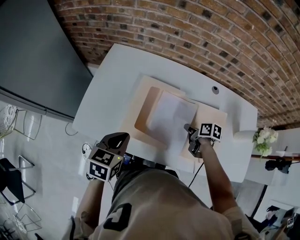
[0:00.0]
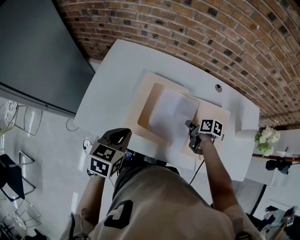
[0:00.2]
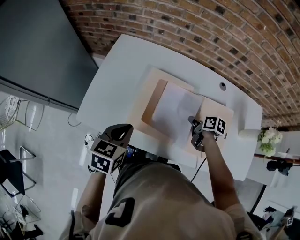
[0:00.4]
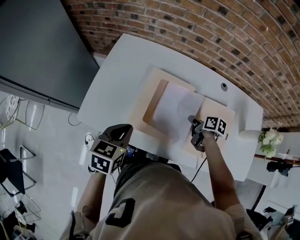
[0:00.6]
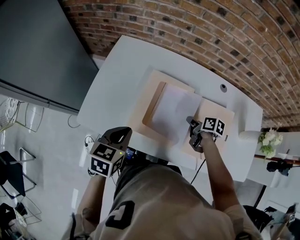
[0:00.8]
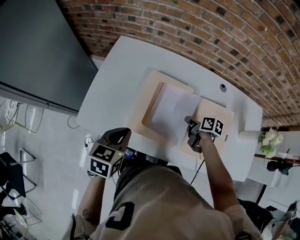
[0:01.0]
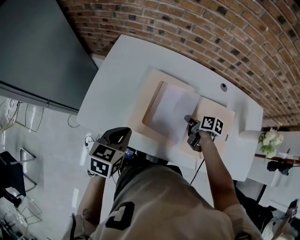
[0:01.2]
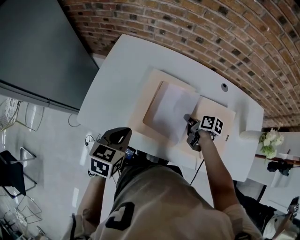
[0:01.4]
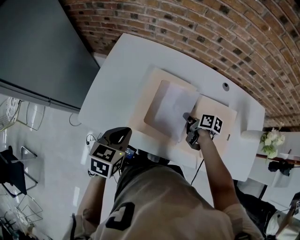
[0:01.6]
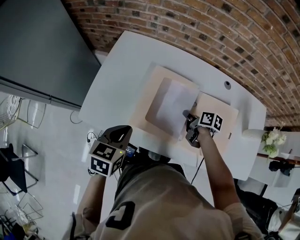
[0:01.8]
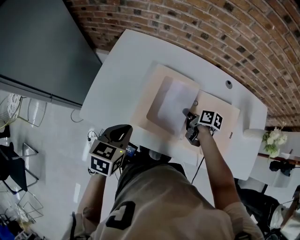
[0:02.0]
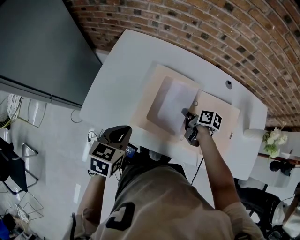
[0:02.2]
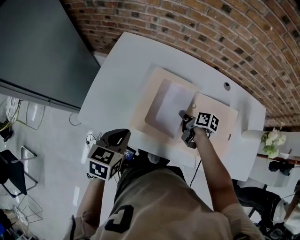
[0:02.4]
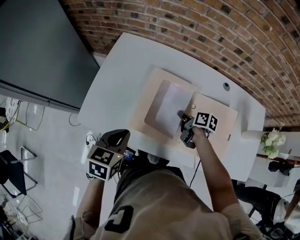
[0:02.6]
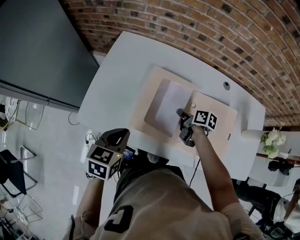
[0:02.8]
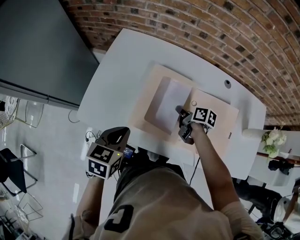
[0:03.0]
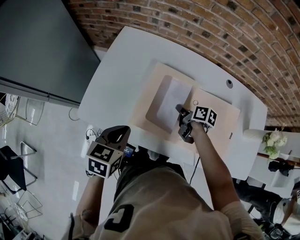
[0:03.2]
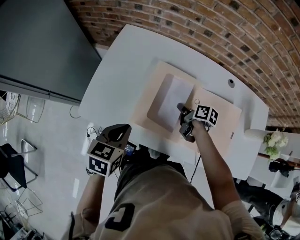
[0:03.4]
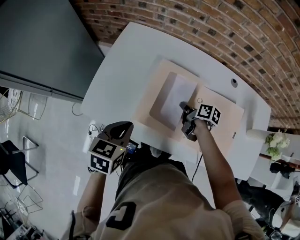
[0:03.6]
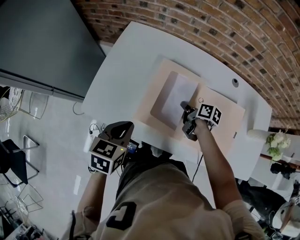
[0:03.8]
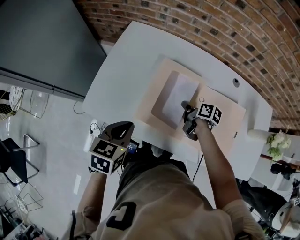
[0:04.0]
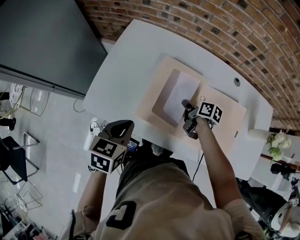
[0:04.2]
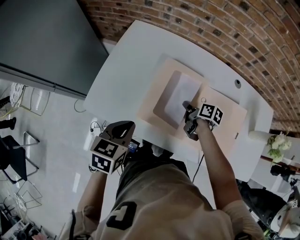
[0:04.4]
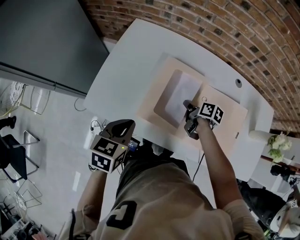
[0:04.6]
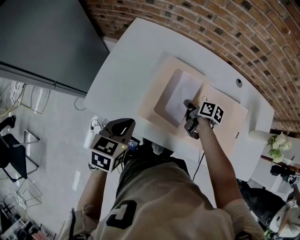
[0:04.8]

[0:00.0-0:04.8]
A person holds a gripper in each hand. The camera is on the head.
0:00.0 to 0:01.6: The right gripper is displaced to the left by roughly 5 cm.
0:01.6 to 0:03.2: The right gripper moves about 5 cm.
0:03.2 to 0:04.8: The two grippers keep their place.

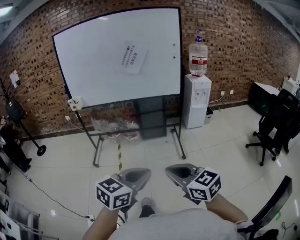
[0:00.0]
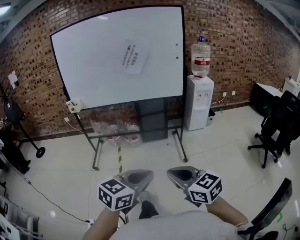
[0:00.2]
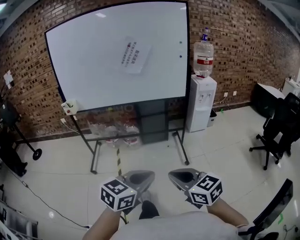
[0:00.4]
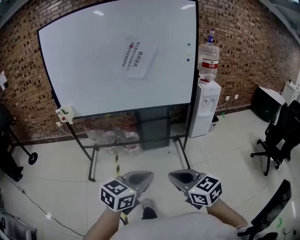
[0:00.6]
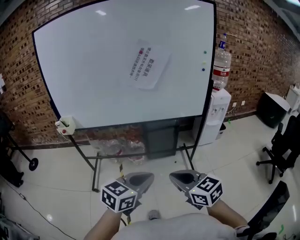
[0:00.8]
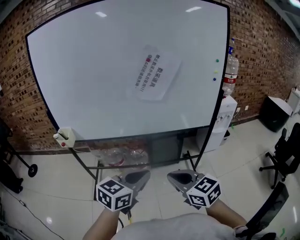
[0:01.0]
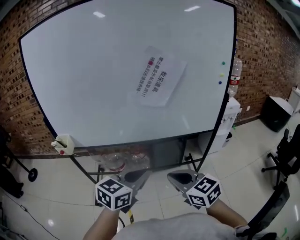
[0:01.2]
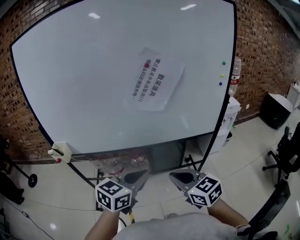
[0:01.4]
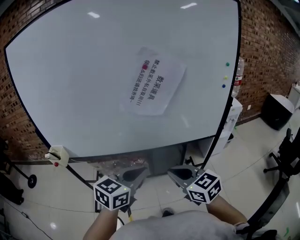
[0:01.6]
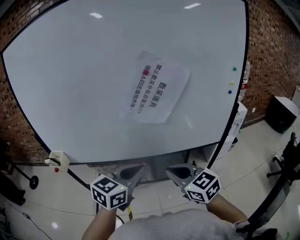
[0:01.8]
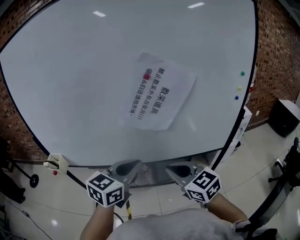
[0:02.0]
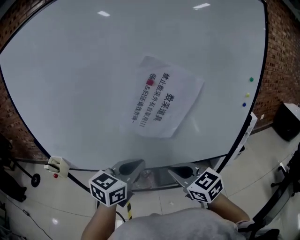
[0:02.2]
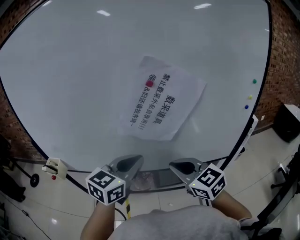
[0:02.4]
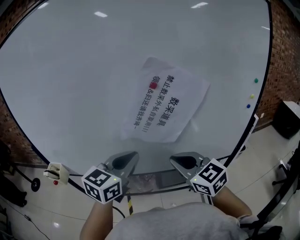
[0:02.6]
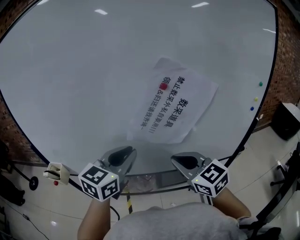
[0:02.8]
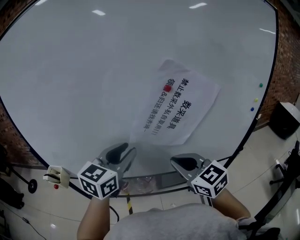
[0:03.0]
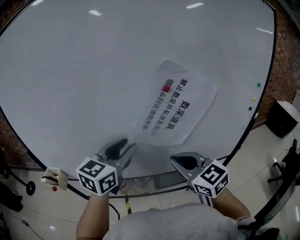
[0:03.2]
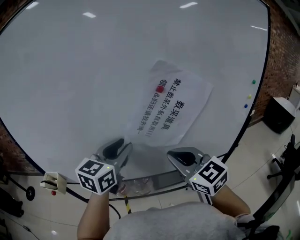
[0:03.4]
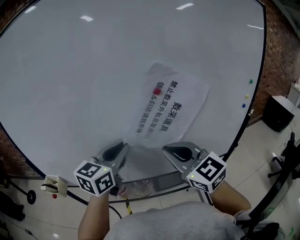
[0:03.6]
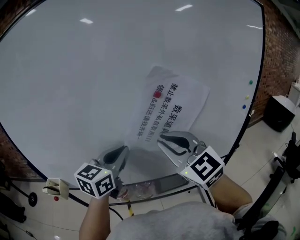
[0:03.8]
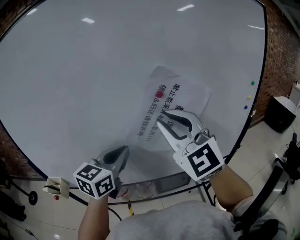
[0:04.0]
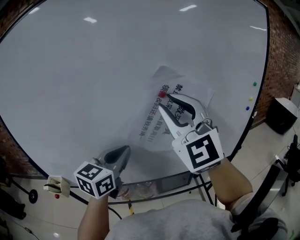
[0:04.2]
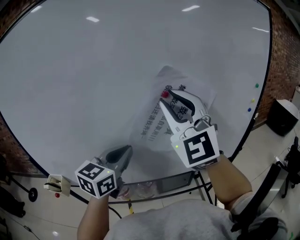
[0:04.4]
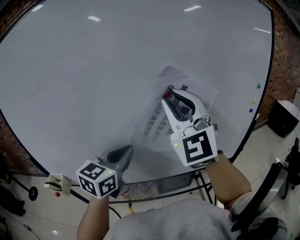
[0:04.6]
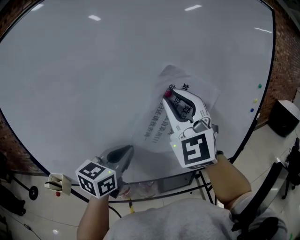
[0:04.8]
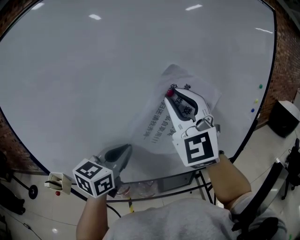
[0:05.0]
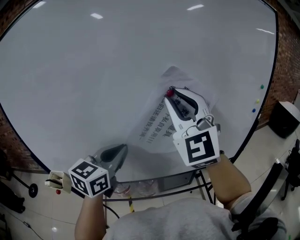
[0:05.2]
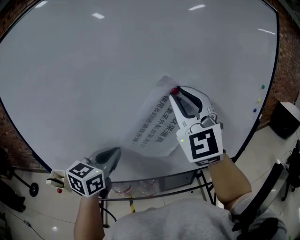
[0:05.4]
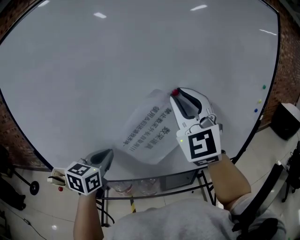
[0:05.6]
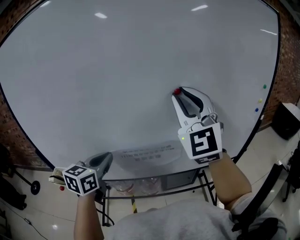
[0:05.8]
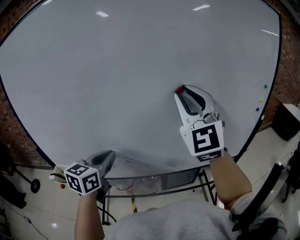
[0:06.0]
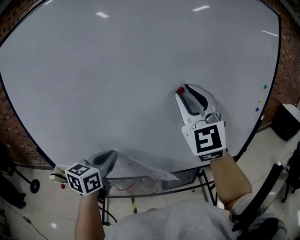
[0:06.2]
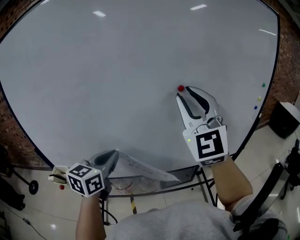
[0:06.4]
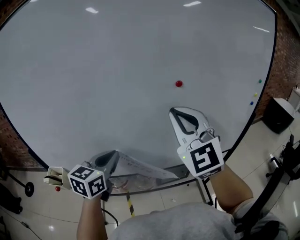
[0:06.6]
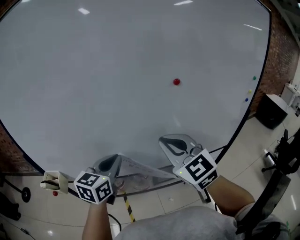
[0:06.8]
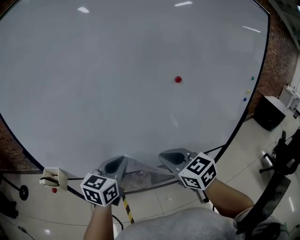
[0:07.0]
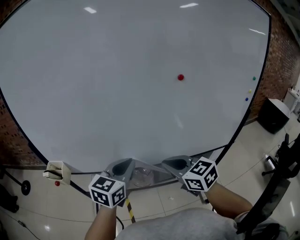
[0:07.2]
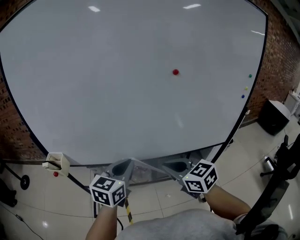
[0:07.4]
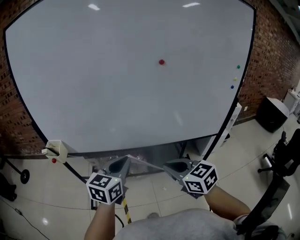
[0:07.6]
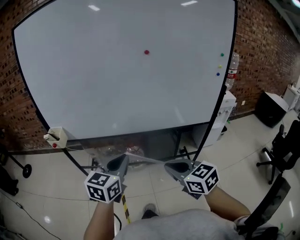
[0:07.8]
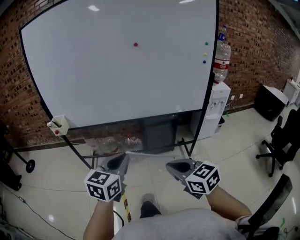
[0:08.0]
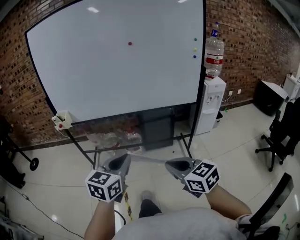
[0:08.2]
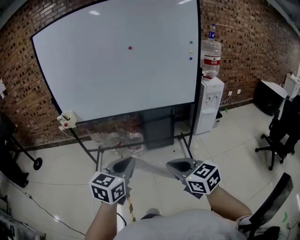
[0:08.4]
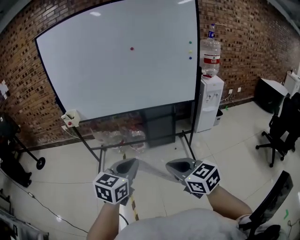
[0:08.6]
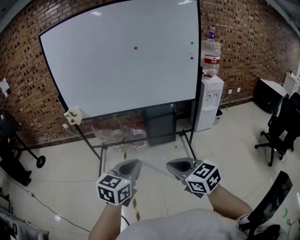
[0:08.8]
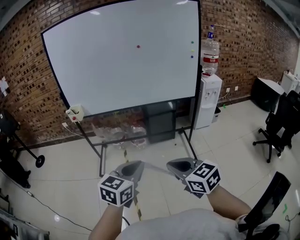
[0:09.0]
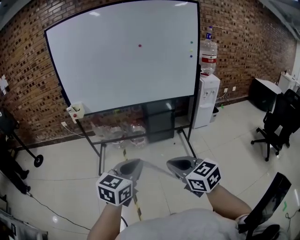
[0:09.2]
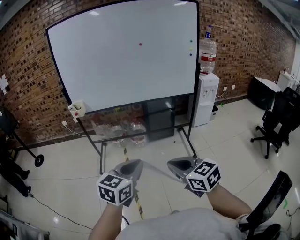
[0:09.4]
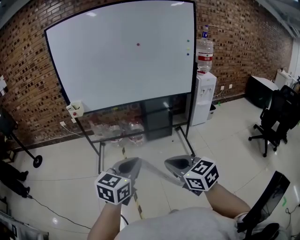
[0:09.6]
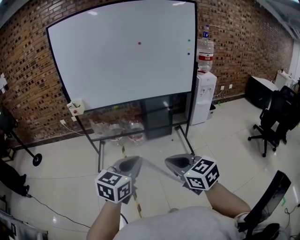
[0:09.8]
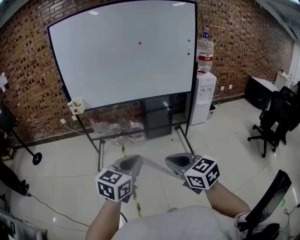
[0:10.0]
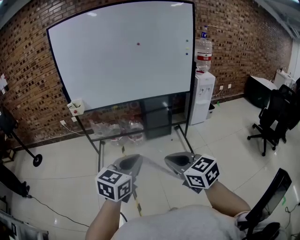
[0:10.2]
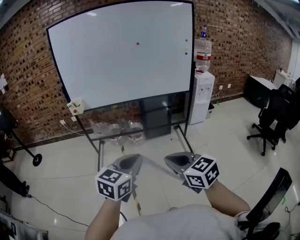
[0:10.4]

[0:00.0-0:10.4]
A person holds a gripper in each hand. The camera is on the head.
0:00.0 to 0:01.4: The pair of grippers is taken forward, approximately 60 cm.
0:01.4 to 0:03.0: Both grippers move forward, about 25 cm. The left gripper opens up.
0:03.0 to 0:04.4: The right gripper moves upward, approximately 25 cm, rotates some 50 degrees, and opens its fingers. The left gripper closes.
0:04.4 to 0:06.0: The left gripper heads to the left, covering some 10 cm.
0:06.0 to 0:07.4: The left gripper is displaced backward, downward and to the right by about 15 cm. Meanwhile the right gripper is displaced downward and backward by about 35 cm, and tips its fingers downward by roughly 40 degrees.
0:07.4 to 0:09.0: The two grippers travel together, backward, approximately 50 cm.
0:09.0 to 0:10.4: Both grippers move backward, some 5 cm.

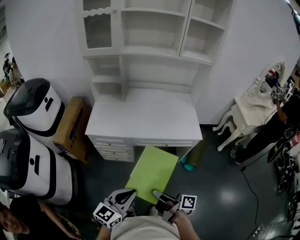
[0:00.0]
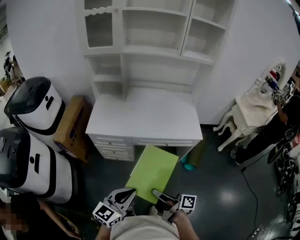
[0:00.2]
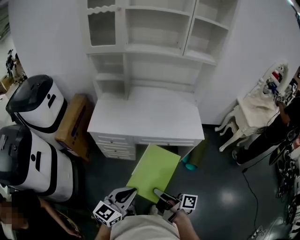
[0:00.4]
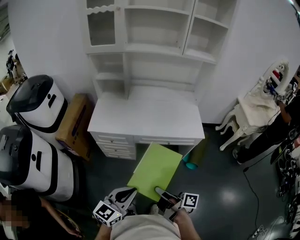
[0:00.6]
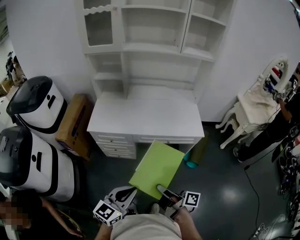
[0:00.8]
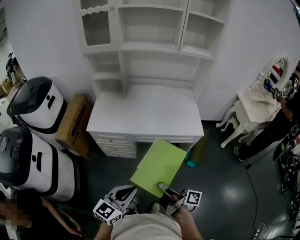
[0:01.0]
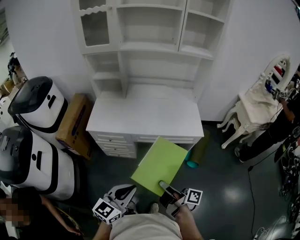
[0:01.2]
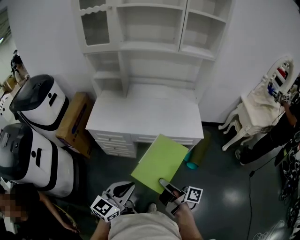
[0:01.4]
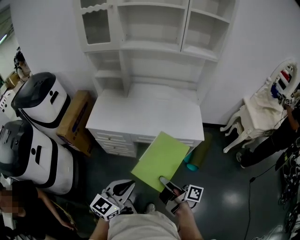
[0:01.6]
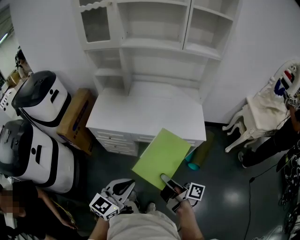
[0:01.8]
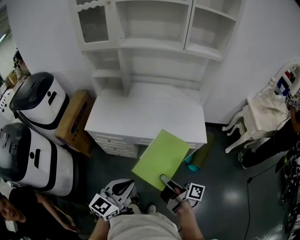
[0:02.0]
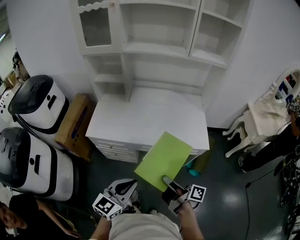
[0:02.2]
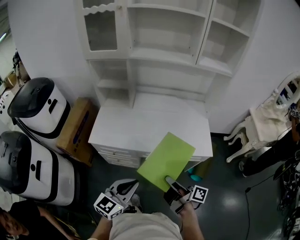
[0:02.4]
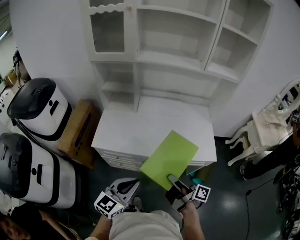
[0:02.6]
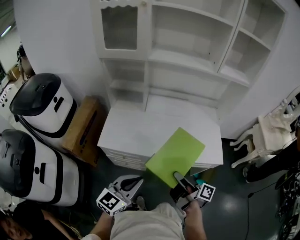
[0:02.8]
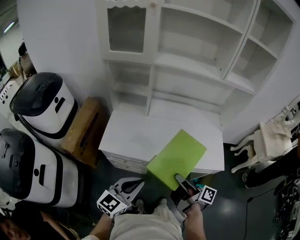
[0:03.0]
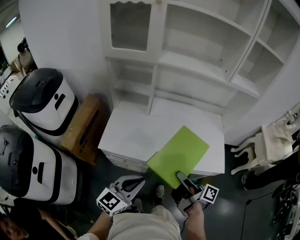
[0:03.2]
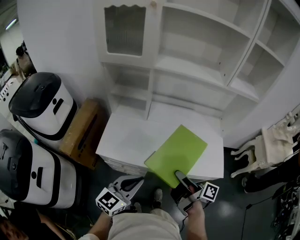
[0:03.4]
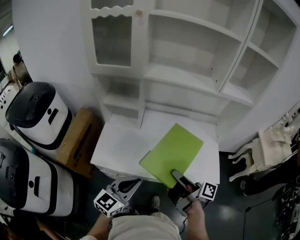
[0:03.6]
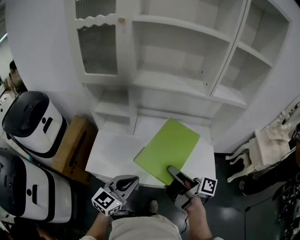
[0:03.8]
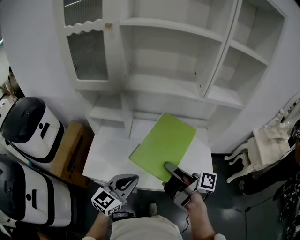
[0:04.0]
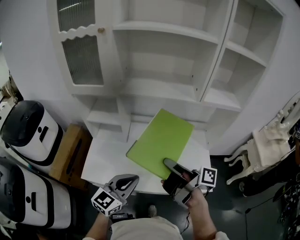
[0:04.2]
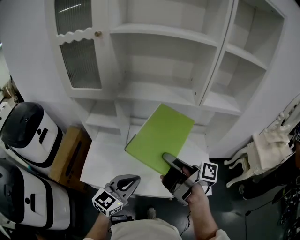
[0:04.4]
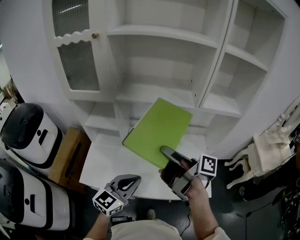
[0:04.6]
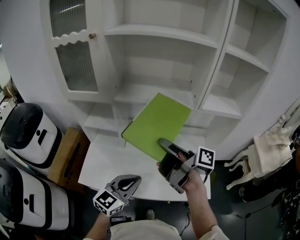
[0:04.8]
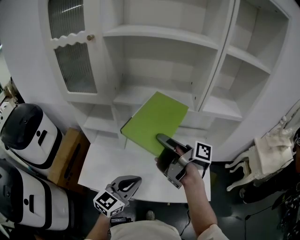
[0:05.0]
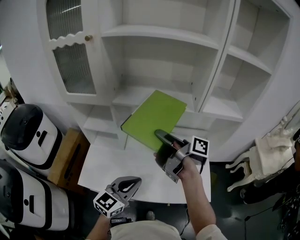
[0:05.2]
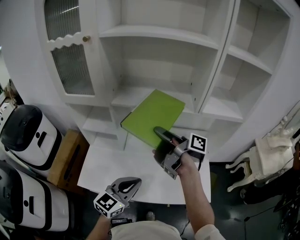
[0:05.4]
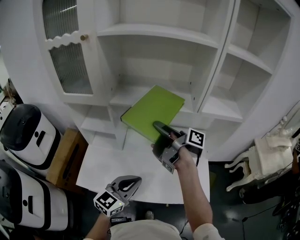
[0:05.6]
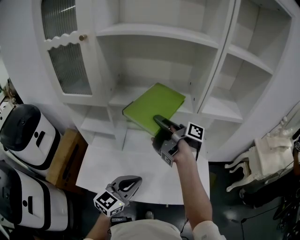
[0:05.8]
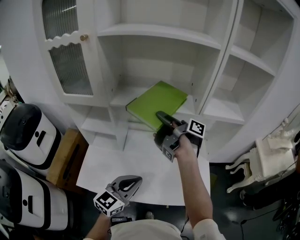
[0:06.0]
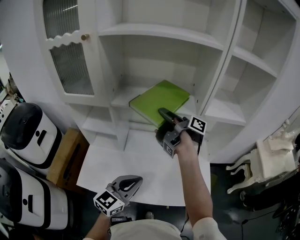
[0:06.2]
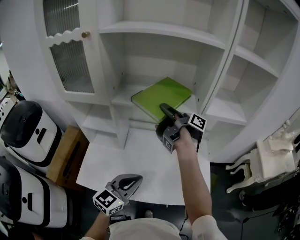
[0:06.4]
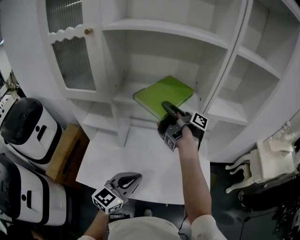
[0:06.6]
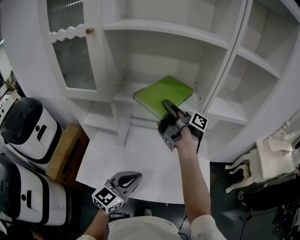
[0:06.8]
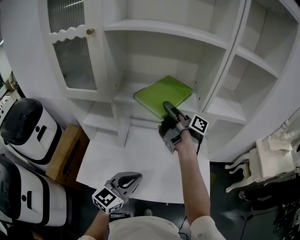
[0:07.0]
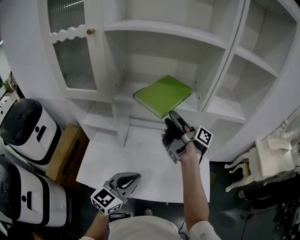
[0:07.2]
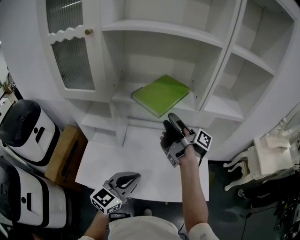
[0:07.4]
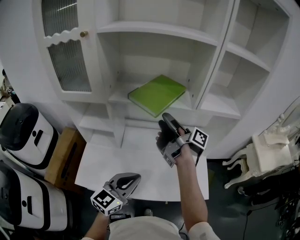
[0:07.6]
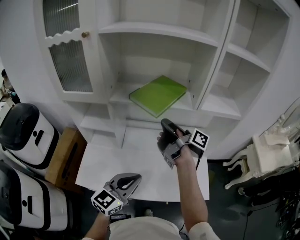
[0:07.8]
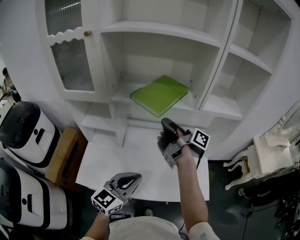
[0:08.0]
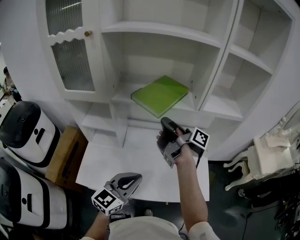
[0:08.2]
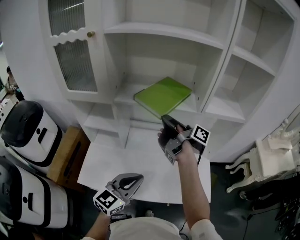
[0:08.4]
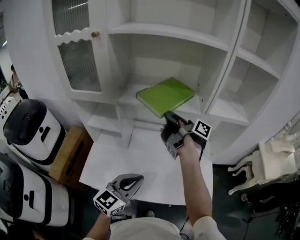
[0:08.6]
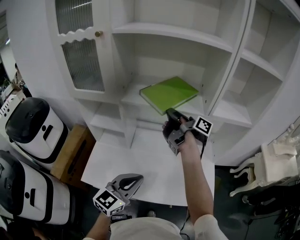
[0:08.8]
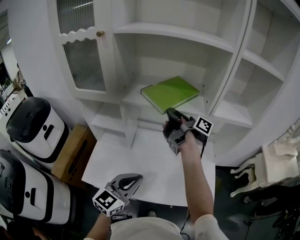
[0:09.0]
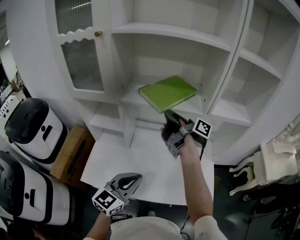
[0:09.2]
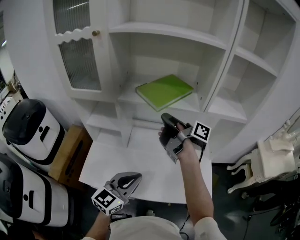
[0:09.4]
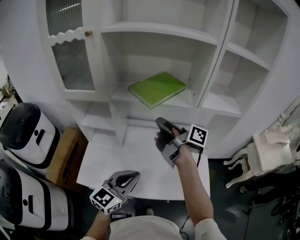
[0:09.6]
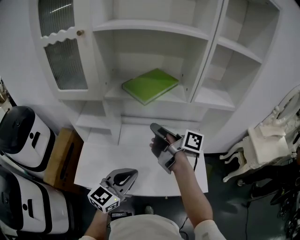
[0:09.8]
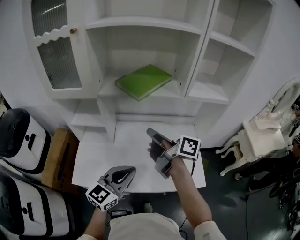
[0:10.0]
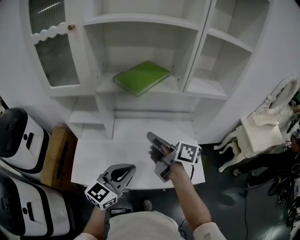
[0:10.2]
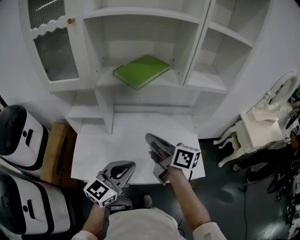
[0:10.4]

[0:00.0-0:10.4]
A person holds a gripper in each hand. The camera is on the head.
0:00.0 to 0:01.4: The left gripper changes place by approximately 5 cm.
0:01.4 to 0:03.0: The left gripper ends up some 25 cm from where it was.
0:03.0 to 0:04.4: The left gripper changes place by roughly 25 cm.
0:04.4 to 0:06.0: The left gripper changes place by approximately 5 cm.
